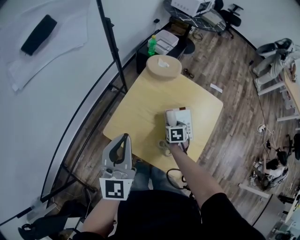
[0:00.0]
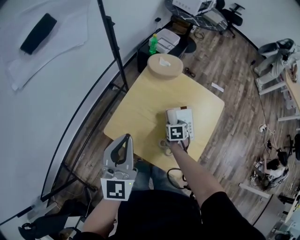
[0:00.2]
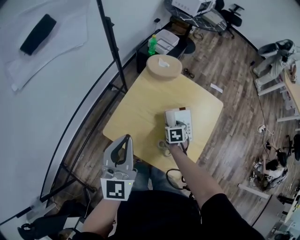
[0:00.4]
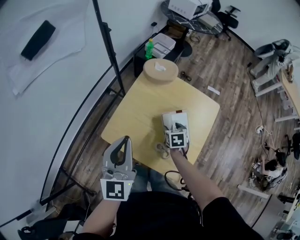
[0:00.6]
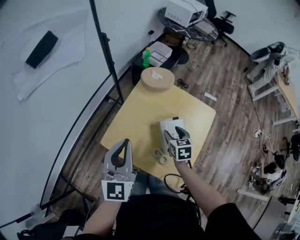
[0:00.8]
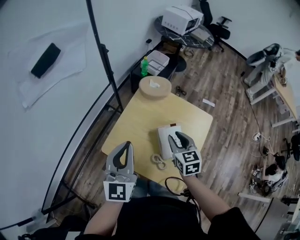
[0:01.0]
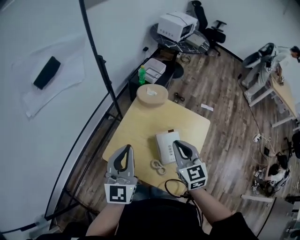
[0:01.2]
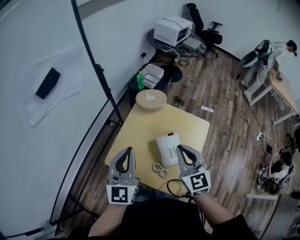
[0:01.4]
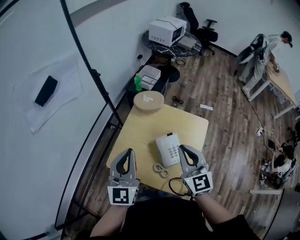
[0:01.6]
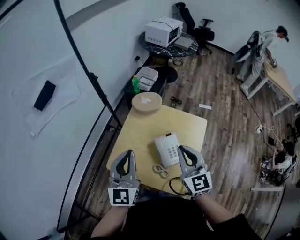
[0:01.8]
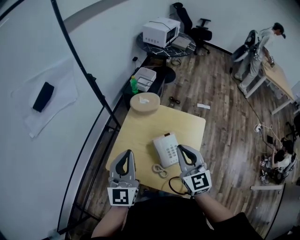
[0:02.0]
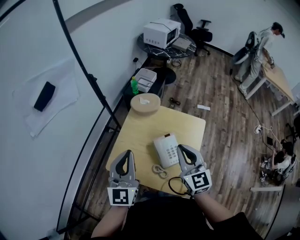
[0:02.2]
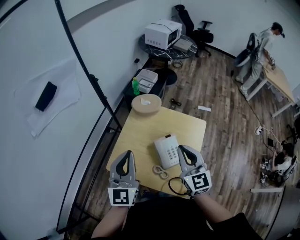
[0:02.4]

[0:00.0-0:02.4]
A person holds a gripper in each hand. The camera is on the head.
0:00.0 to 0:01.2: The right gripper is displaced upward by approximately 30 cm, tilts its fingers roughly 40 degrees upward, and closes its fingers. Meanwhile the left gripper shifts by roughly 5 cm.
0:01.2 to 0:02.4: The right gripper is displaced upward by roughly 5 cm.

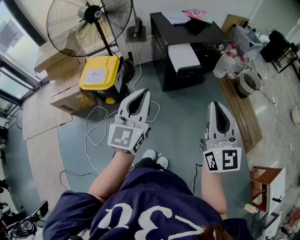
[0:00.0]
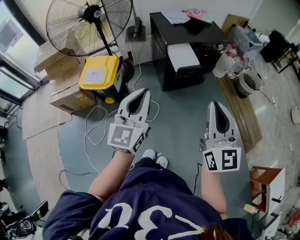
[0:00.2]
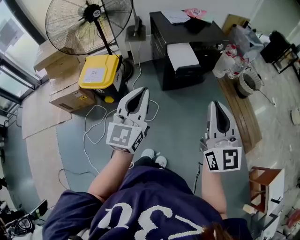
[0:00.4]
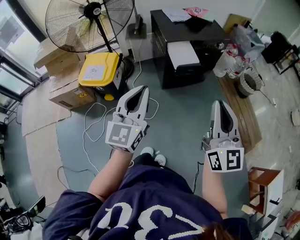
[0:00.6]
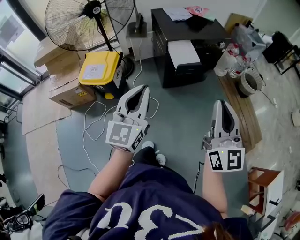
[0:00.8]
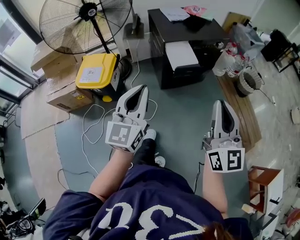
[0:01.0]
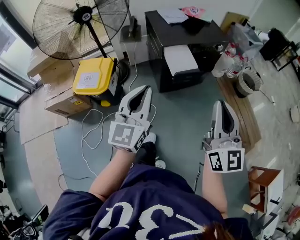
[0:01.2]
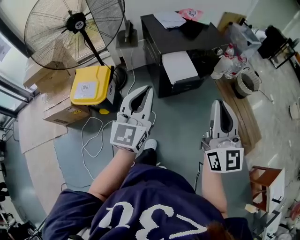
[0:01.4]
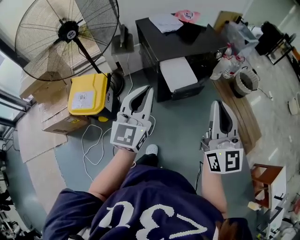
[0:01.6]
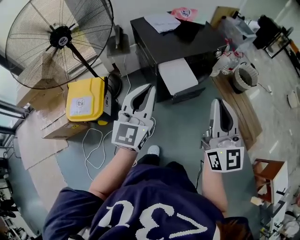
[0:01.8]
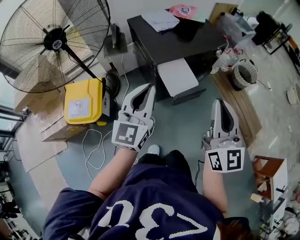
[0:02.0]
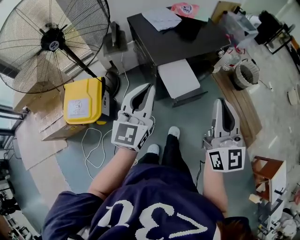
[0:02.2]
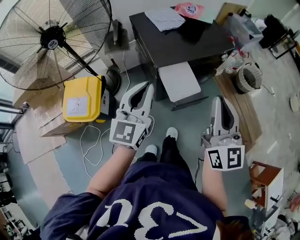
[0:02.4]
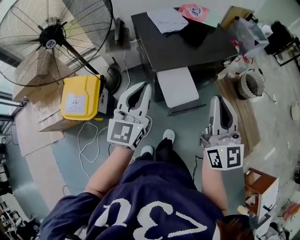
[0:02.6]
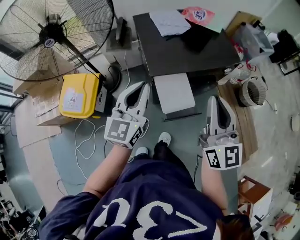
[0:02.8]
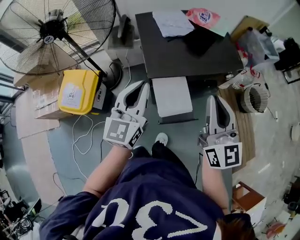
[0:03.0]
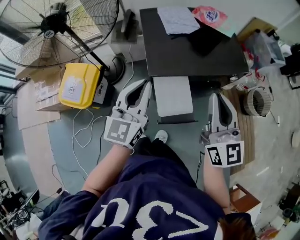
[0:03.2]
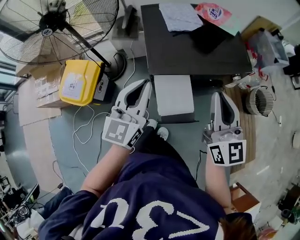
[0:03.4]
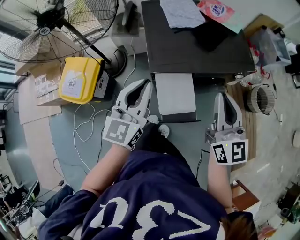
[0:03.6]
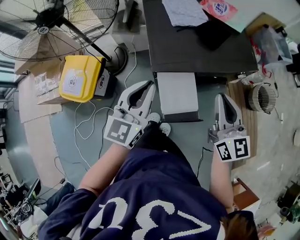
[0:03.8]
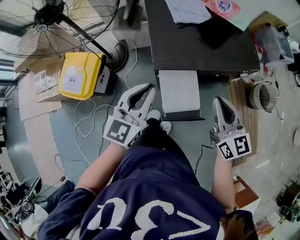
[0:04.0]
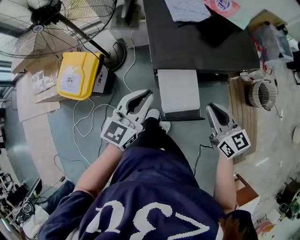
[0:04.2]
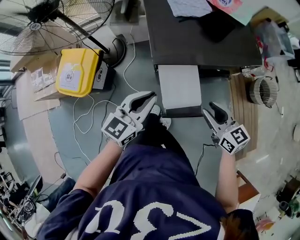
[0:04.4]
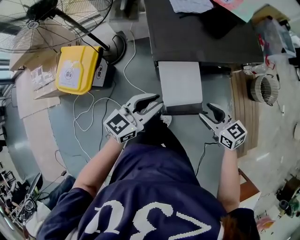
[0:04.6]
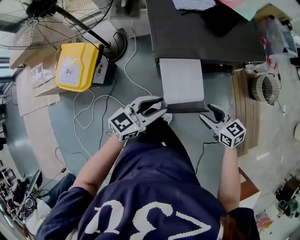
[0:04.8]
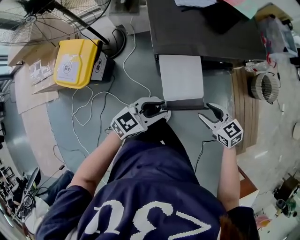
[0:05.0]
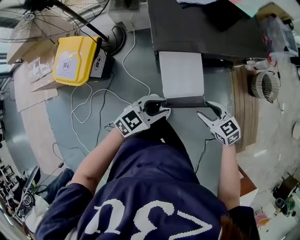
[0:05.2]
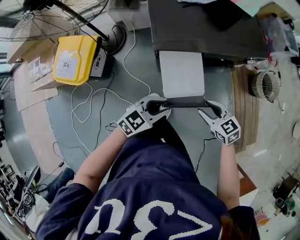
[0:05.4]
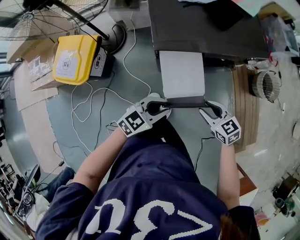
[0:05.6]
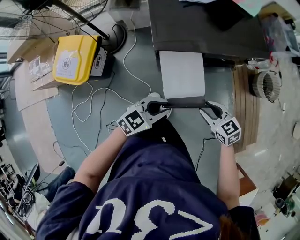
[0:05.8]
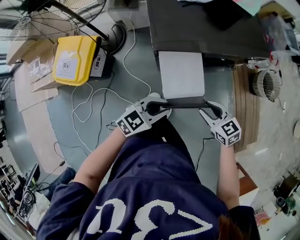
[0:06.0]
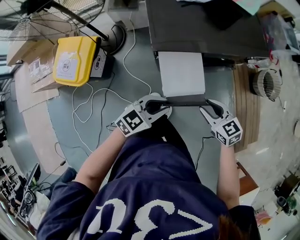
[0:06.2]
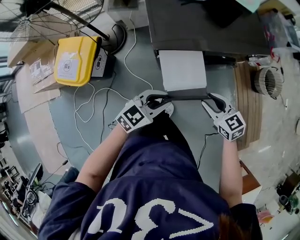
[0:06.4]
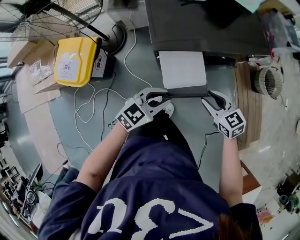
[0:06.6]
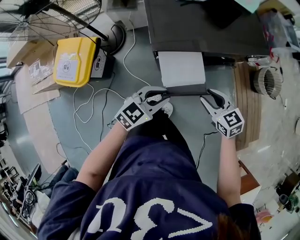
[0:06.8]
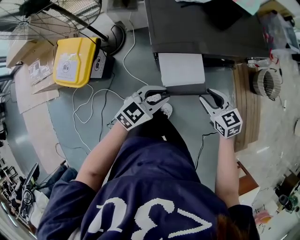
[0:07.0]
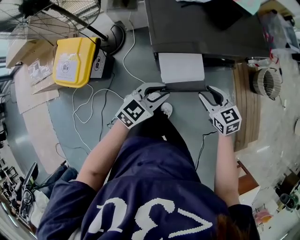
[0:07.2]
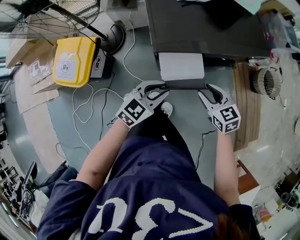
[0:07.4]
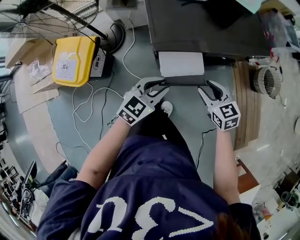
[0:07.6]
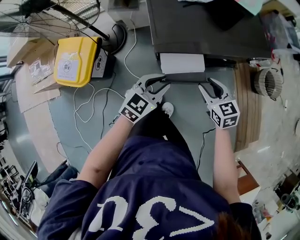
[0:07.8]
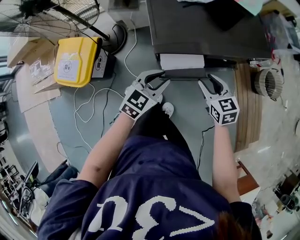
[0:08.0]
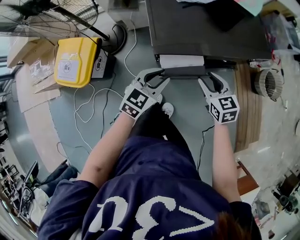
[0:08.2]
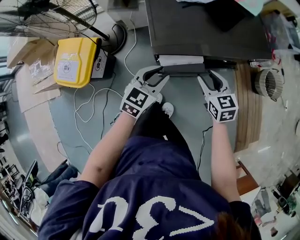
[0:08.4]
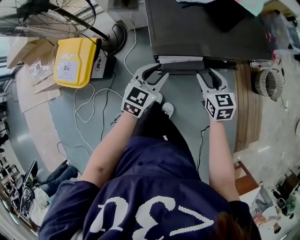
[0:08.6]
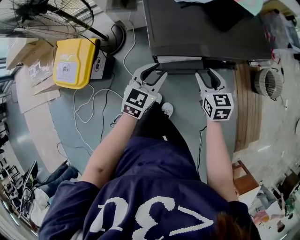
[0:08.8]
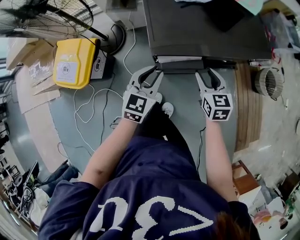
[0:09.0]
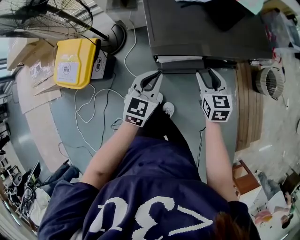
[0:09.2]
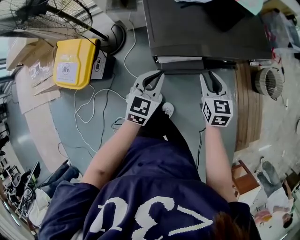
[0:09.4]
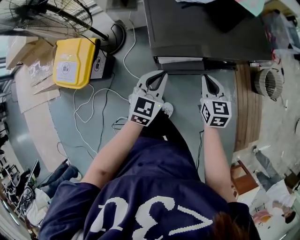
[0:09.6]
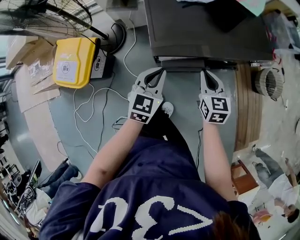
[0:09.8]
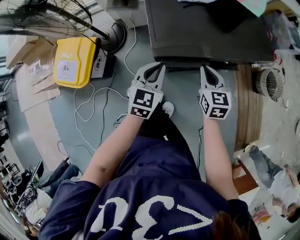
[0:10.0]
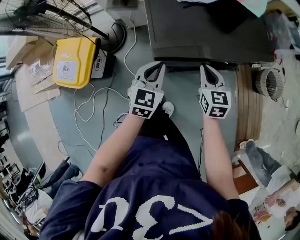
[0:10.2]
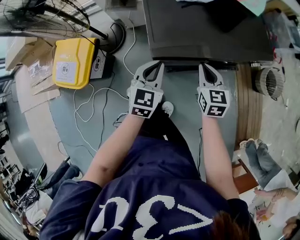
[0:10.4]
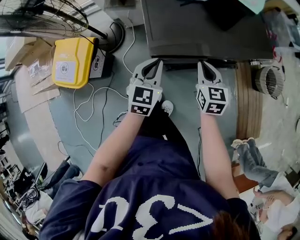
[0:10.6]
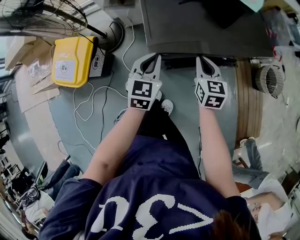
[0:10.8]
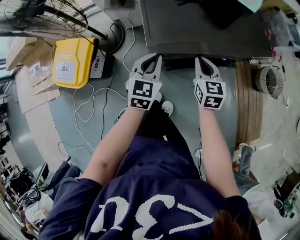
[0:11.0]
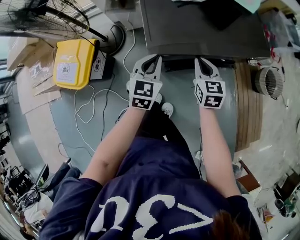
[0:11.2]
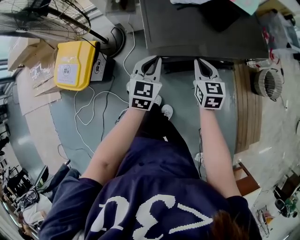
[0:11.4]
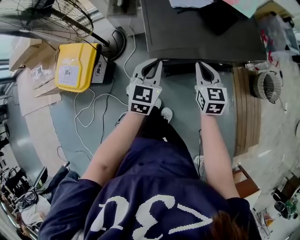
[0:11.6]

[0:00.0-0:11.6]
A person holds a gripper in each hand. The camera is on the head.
0:00.0 to 0:01.4: Both grippers move forward, approximately 15 cm.
0:01.4 to 0:02.8: The two grippers go approximately 35 cm forward.
0:02.8 to 0:04.4: The left gripper heads downward, covering some 15 cm, while the right gripper moves downward, some 25 cm, tips its fingers downward by some 30 degrees, and opens its fingers.
0:04.4 to 0:05.8: The left gripper travels downward, backward and to the right by roughly 15 cm, and swivels about 30 degrees. The right gripper travels downward by about 10 cm, and rotates some 20 degrees.
0:05.8 to 0:07.2: Both grippers move forward, some 5 cm.
0:07.2 to 0:08.8: Both grippers travel together forward, approximately 10 cm. The left gripper rotates roughly 20 degrees.
0:08.8 to 0:10.2: The right gripper closes its fingers, while the left gripper closes up.
0:10.2 to 0:11.6: The grippers make only small movements.

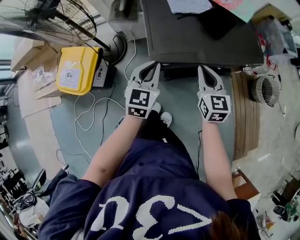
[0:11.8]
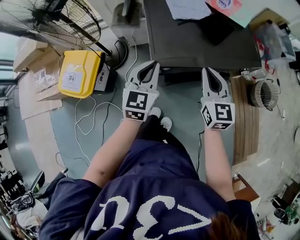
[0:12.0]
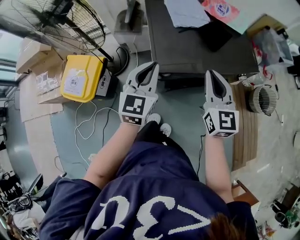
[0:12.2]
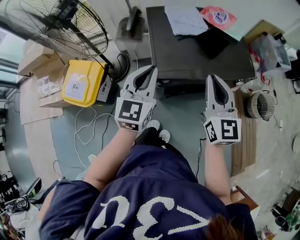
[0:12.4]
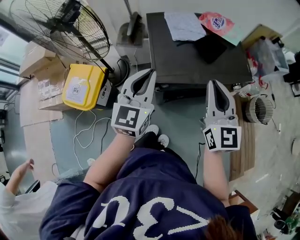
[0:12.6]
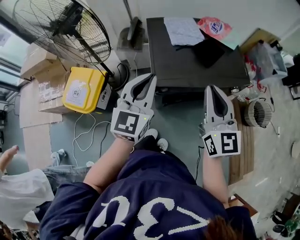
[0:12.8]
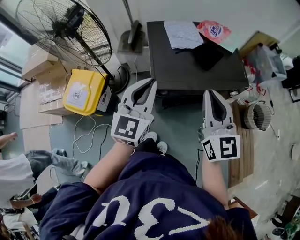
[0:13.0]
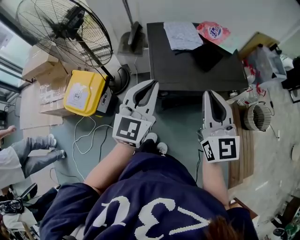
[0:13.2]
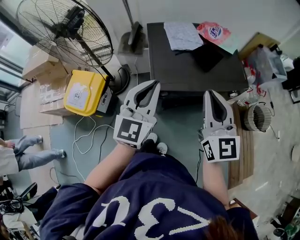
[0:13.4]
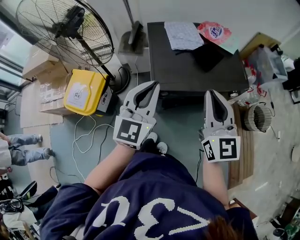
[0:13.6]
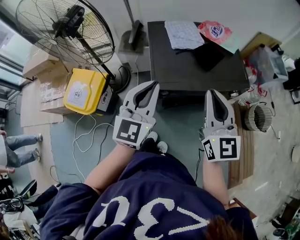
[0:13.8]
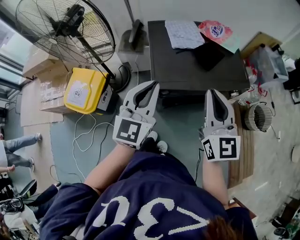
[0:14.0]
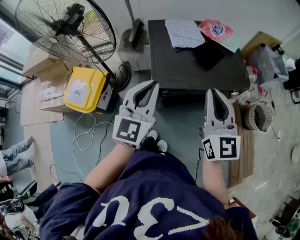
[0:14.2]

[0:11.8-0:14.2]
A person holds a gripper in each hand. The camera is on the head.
0:11.8 to 0:13.0: The grippers both shift upward by about 20 cm. The right gripper rotates some 20 degrees.
0:13.0 to 0:14.2: The grippers make only small movements.

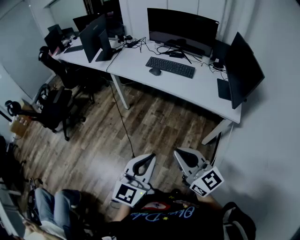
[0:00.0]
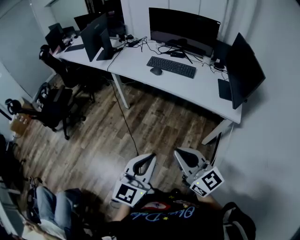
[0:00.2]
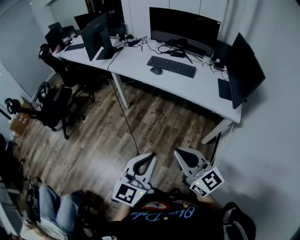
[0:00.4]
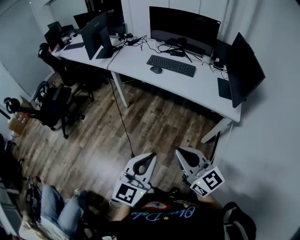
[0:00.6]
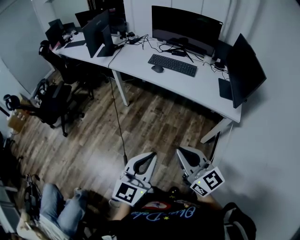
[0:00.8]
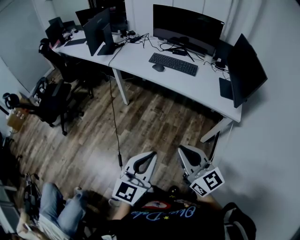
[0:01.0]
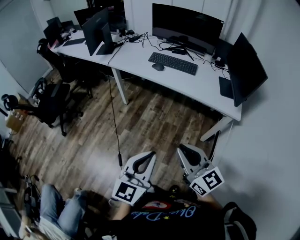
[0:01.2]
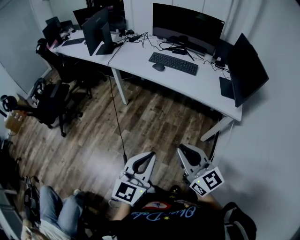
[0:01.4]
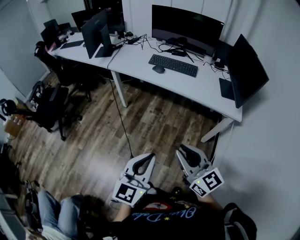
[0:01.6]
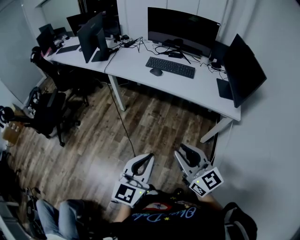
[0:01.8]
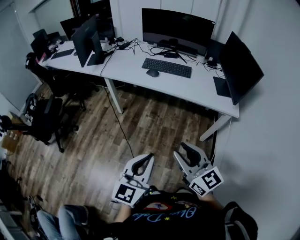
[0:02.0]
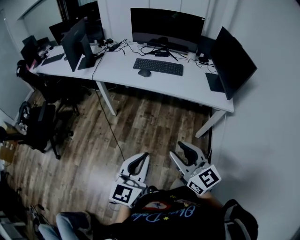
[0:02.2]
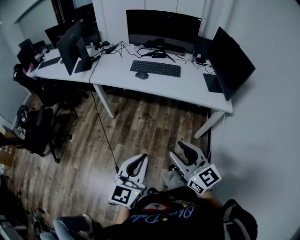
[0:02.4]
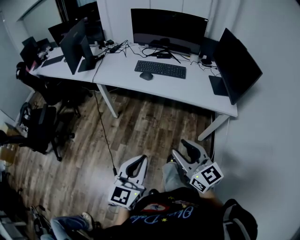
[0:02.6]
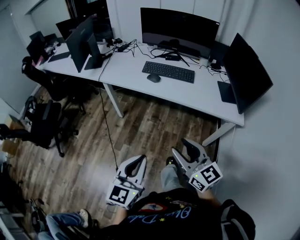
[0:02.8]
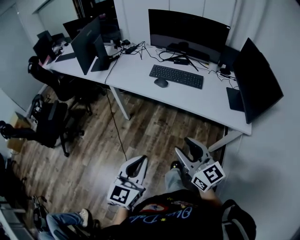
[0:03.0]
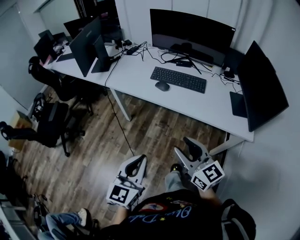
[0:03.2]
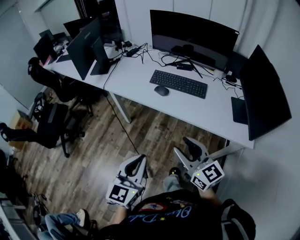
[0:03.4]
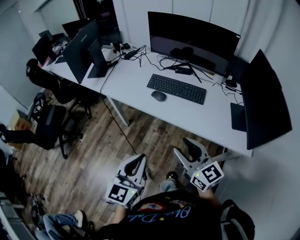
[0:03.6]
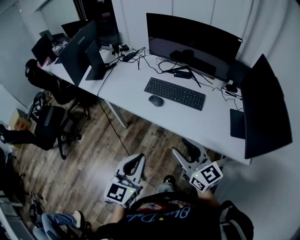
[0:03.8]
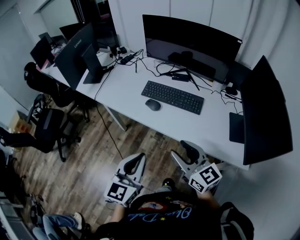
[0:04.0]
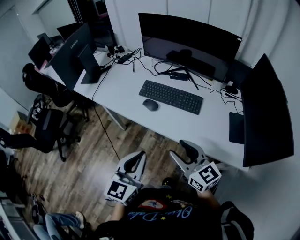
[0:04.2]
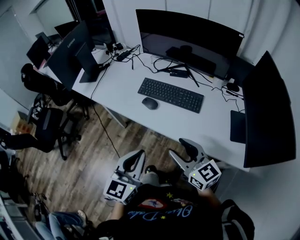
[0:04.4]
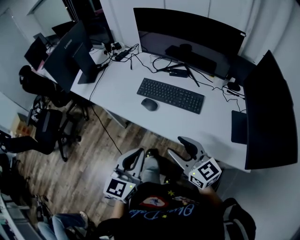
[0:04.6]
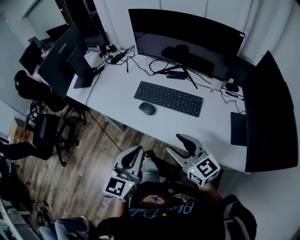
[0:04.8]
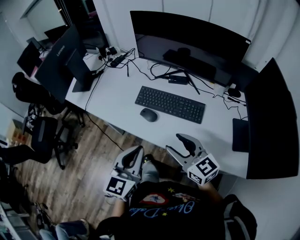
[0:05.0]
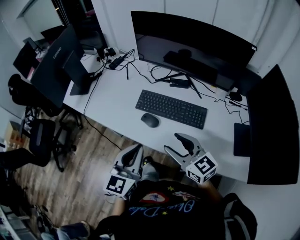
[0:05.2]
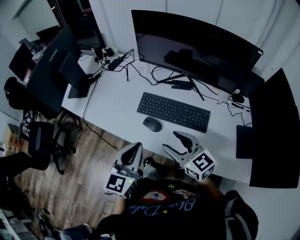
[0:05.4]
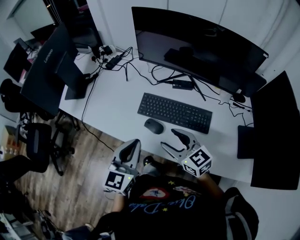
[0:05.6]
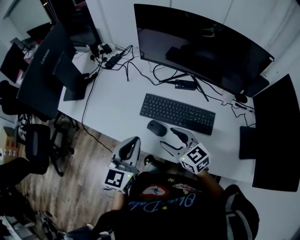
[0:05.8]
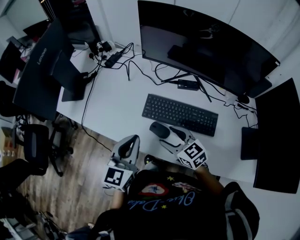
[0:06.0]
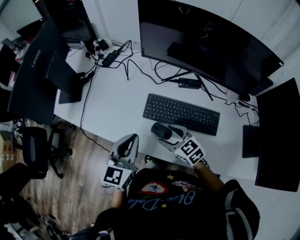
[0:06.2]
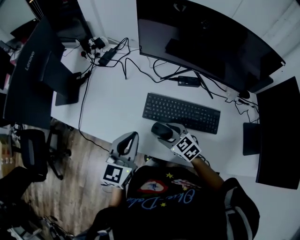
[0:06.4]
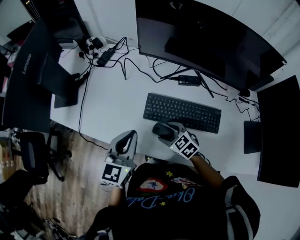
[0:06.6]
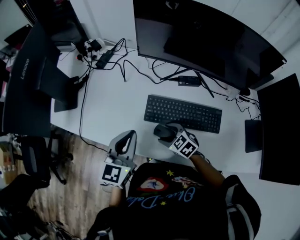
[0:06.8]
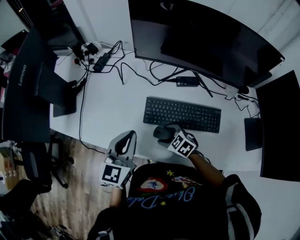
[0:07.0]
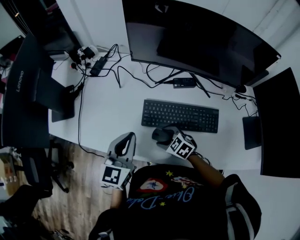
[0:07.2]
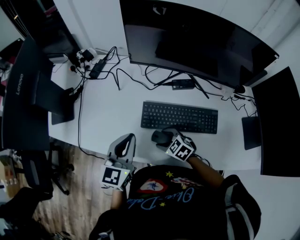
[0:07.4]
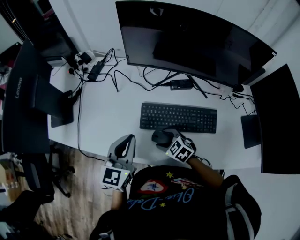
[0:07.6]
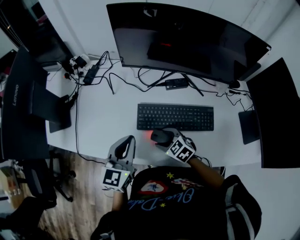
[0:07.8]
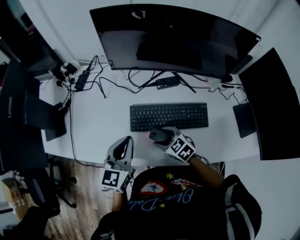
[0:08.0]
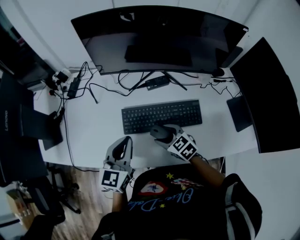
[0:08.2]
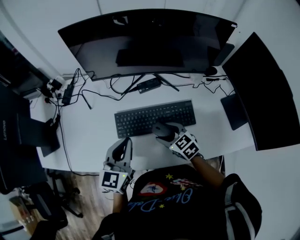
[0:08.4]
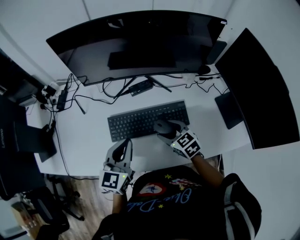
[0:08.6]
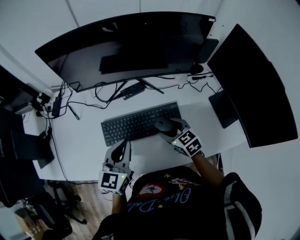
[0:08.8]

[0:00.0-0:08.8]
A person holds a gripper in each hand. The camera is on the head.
0:00.0 to 0:01.4: The left gripper shifts roughly 5 cm to the left.
0:01.4 to 0:03.0: The left gripper moves forward and to the left, some 15 cm. The right gripper travels forward by some 15 cm, and opens up.
0:03.0 to 0:04.4: The grippers both shift forward and to the right by some 25 cm.
0:04.4 to 0:05.8: The grippers both shift forward by approximately 25 cm.
0:05.8 to 0:07.4: The left gripper goes approximately 10 cm forward. The right gripper is displaced downward by roughly 15 cm, and changes its angle by approximately 30 degrees.
0:07.4 to 0:08.8: The right gripper ends up about 25 cm from where it was, and changes its angle by approximately 40 degrees. The left gripper moves roughly 15 cm.
